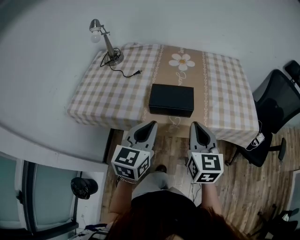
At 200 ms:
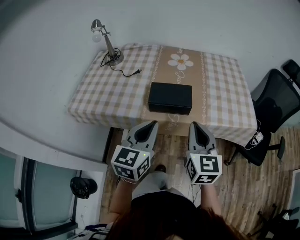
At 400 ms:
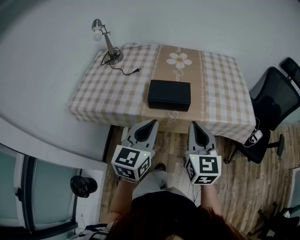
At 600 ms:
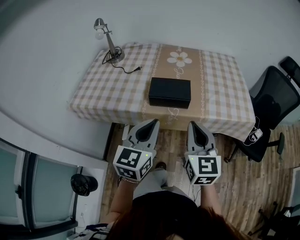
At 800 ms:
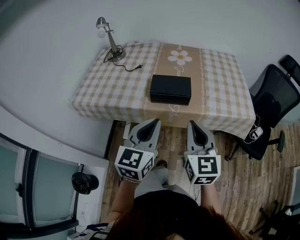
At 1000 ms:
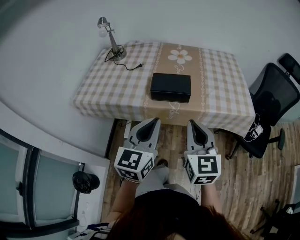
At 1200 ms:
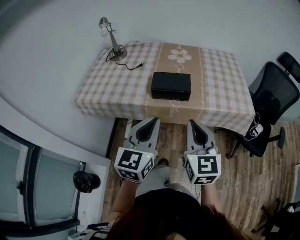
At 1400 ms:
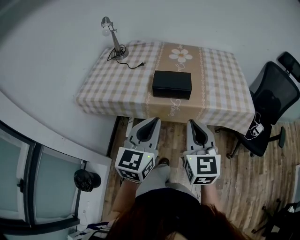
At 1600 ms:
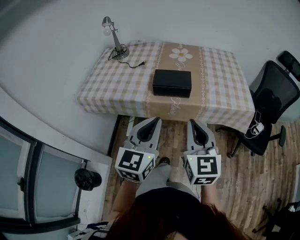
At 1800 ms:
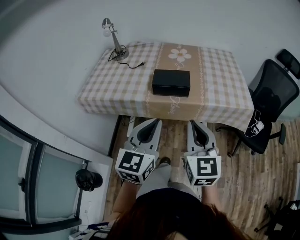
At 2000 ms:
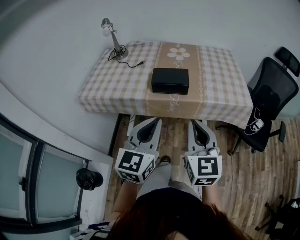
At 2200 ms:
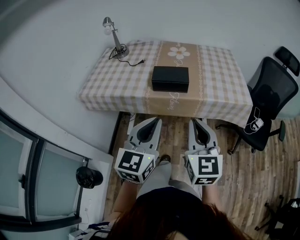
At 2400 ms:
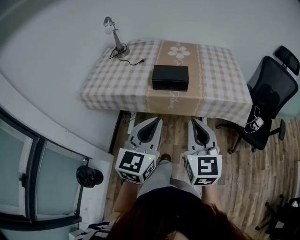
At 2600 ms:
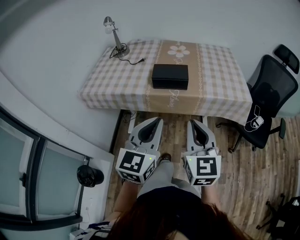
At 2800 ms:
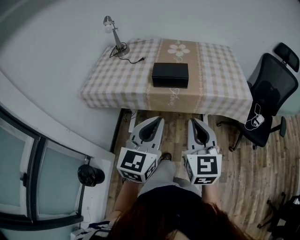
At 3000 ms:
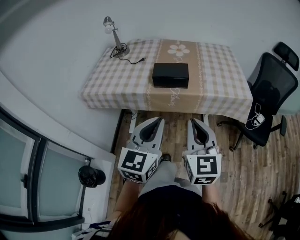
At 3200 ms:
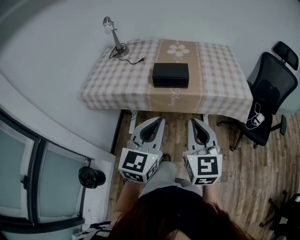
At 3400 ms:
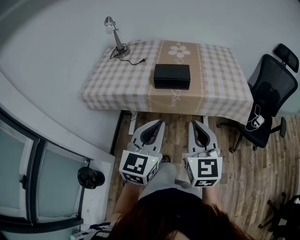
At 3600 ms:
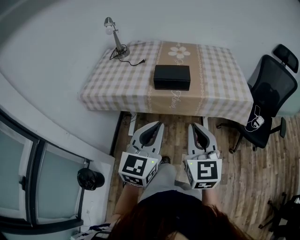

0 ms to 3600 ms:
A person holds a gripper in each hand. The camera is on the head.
0 ms to 1800 ms: The two grippers go approximately 15 cm backward.
1800 ms to 3600 ms: Both grippers move backward, roughly 5 cm.

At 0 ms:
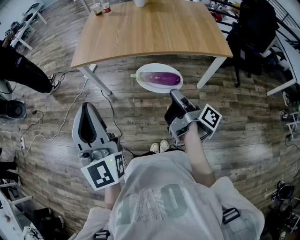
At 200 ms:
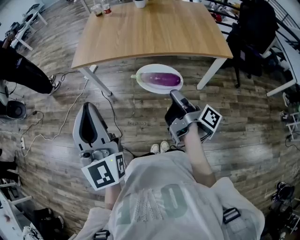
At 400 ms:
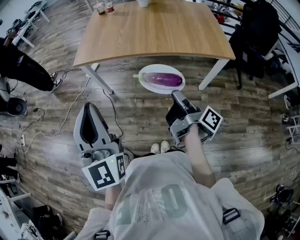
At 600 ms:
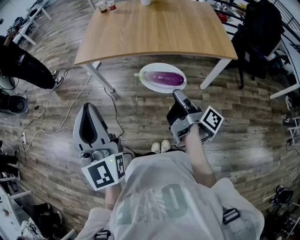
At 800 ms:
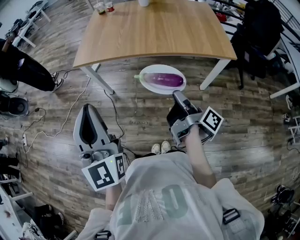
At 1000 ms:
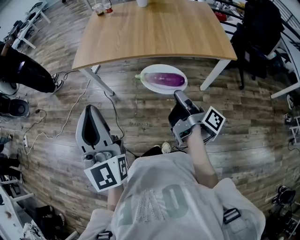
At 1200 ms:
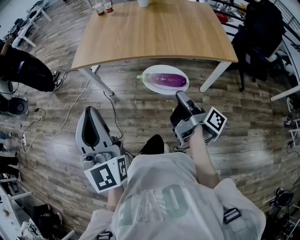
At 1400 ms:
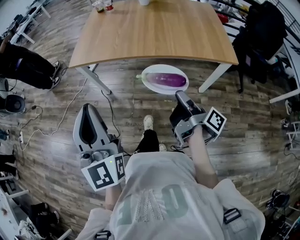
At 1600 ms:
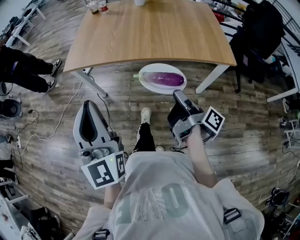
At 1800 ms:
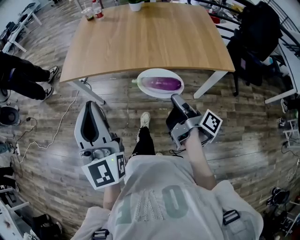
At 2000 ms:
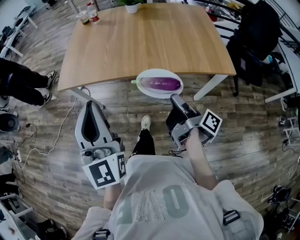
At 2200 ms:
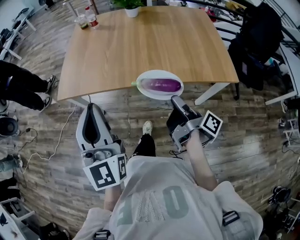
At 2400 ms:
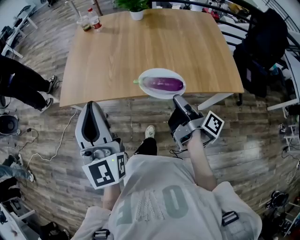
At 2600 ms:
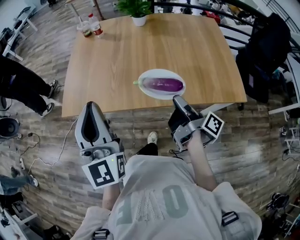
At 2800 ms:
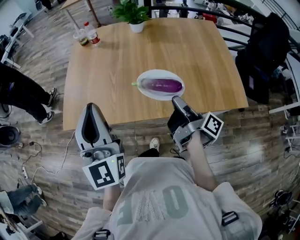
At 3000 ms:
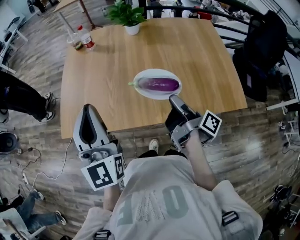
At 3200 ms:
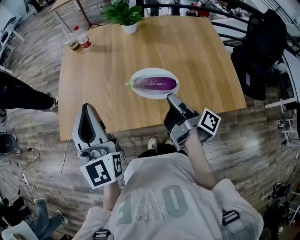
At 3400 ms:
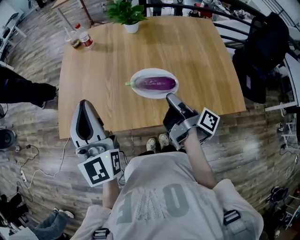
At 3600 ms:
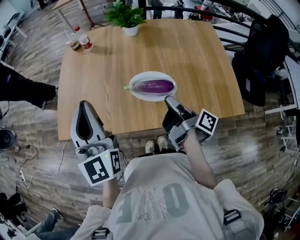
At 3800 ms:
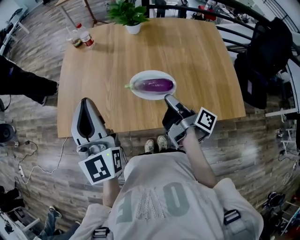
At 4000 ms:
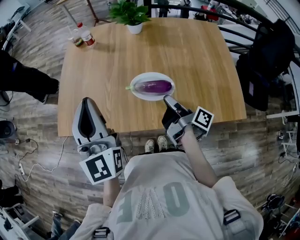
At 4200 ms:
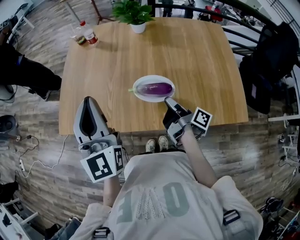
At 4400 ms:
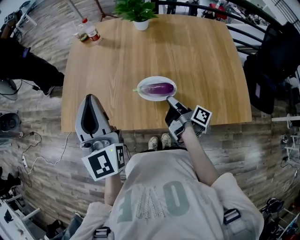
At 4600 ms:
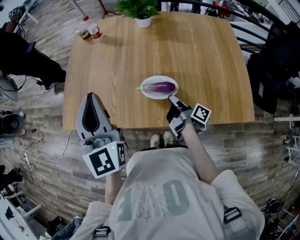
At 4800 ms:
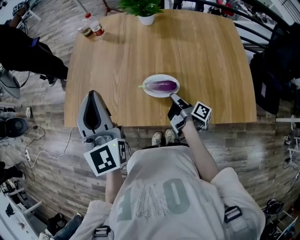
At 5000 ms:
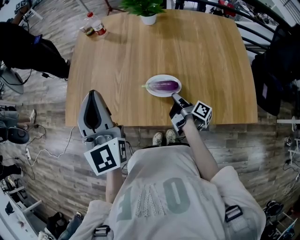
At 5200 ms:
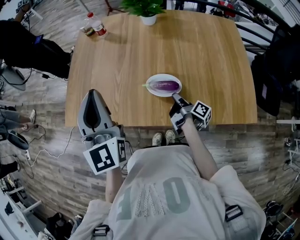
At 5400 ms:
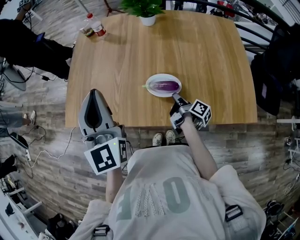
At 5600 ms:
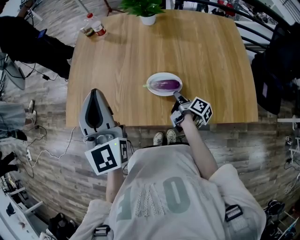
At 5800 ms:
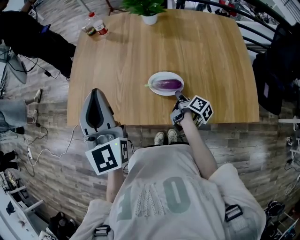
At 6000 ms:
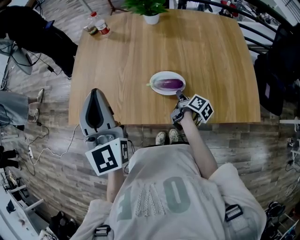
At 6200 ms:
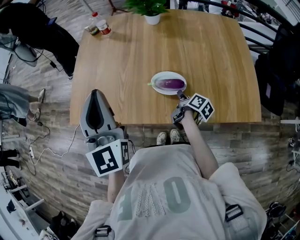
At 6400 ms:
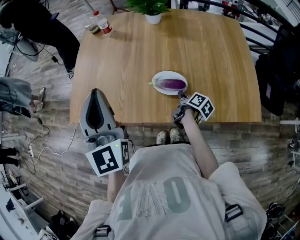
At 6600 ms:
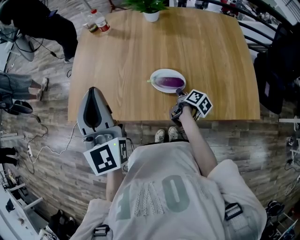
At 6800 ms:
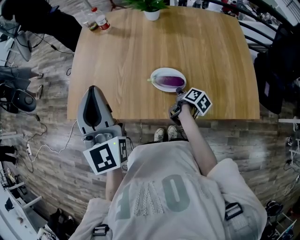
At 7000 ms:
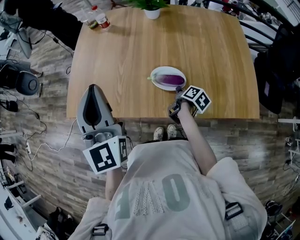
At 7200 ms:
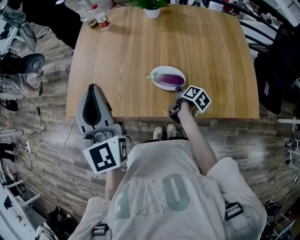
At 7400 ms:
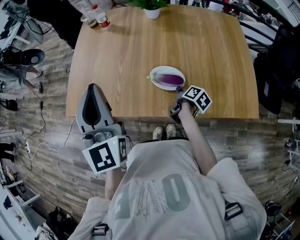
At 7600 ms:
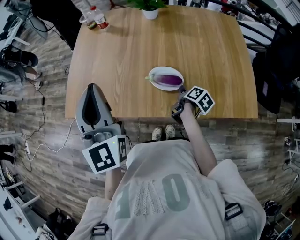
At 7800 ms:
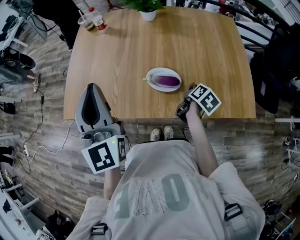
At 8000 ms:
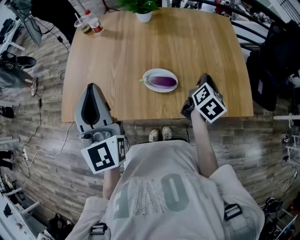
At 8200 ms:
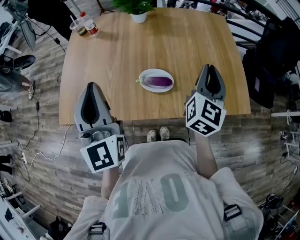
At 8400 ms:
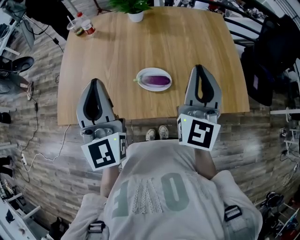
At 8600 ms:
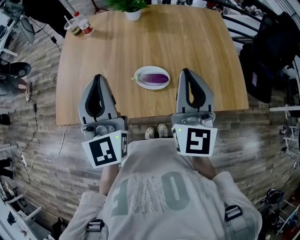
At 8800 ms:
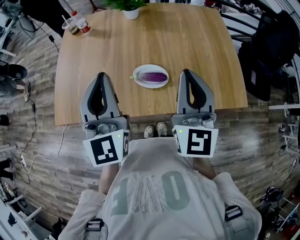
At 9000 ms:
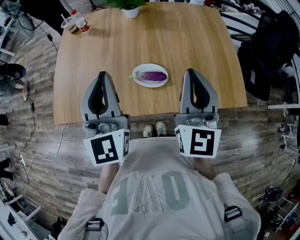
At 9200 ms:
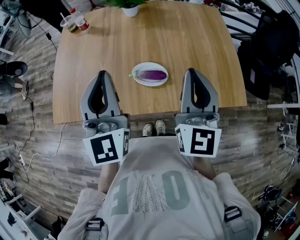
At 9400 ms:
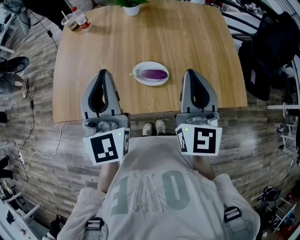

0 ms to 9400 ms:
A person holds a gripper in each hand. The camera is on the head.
0 ms to 1600 ms: The left gripper shifts by about 10 cm.
1600 ms to 3200 ms: The left gripper shifts by roughly 40 cm.
7800 ms to 9400 ms: The left gripper ends up about 10 cm from where it was.

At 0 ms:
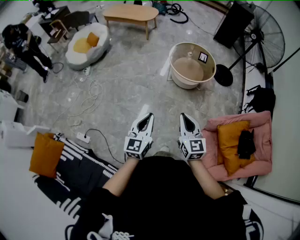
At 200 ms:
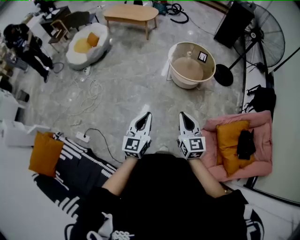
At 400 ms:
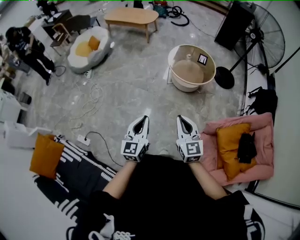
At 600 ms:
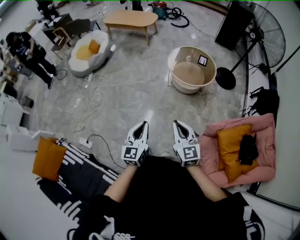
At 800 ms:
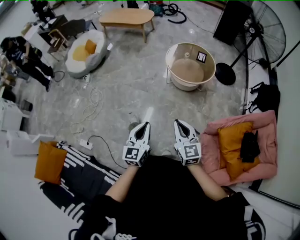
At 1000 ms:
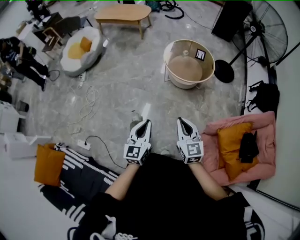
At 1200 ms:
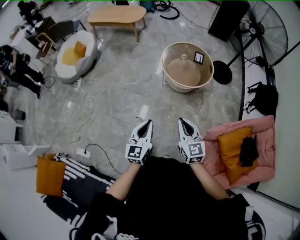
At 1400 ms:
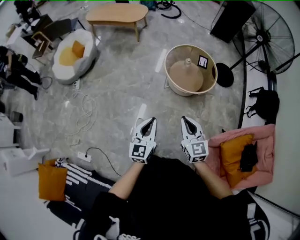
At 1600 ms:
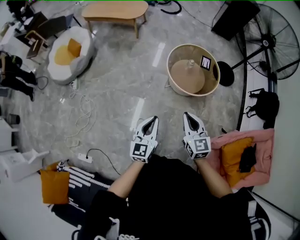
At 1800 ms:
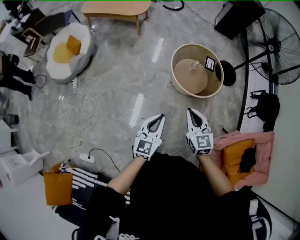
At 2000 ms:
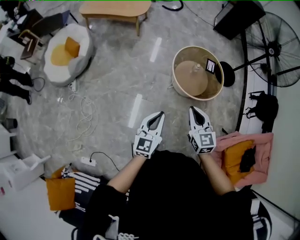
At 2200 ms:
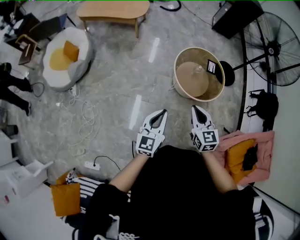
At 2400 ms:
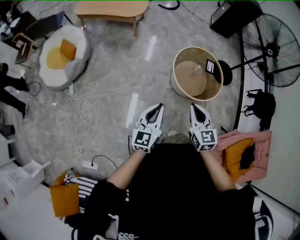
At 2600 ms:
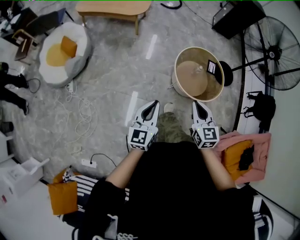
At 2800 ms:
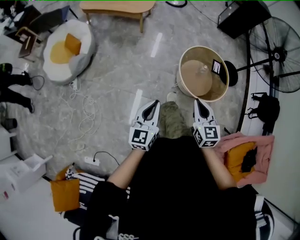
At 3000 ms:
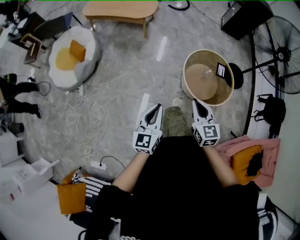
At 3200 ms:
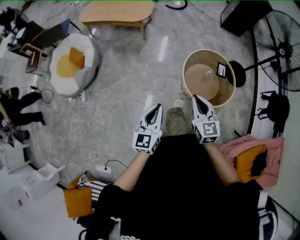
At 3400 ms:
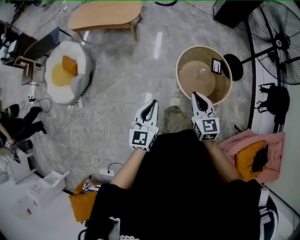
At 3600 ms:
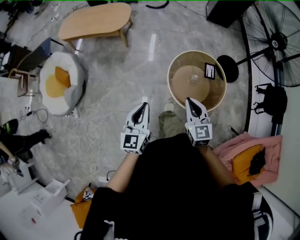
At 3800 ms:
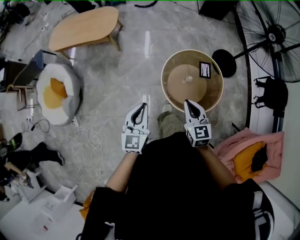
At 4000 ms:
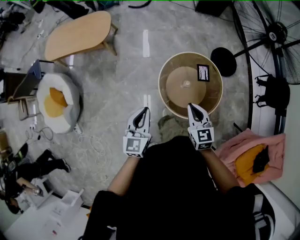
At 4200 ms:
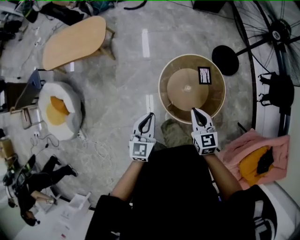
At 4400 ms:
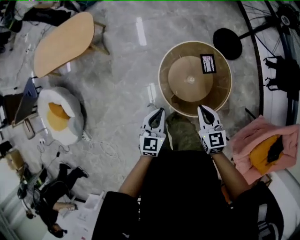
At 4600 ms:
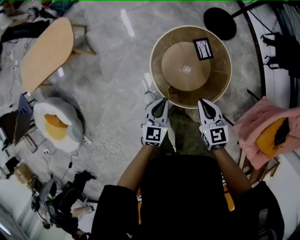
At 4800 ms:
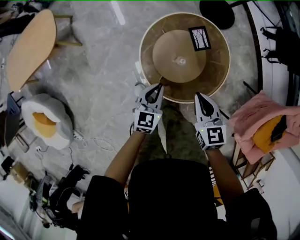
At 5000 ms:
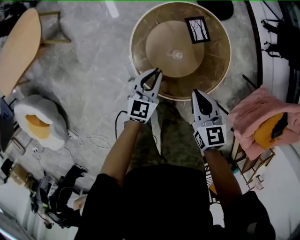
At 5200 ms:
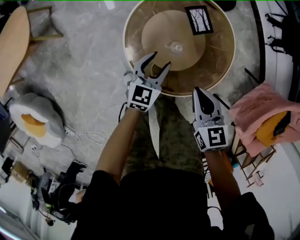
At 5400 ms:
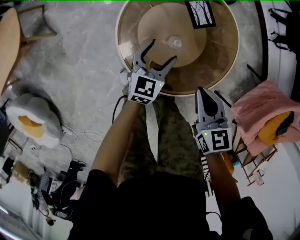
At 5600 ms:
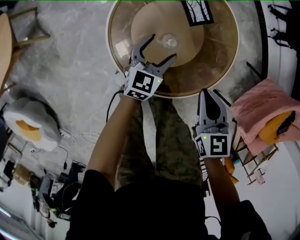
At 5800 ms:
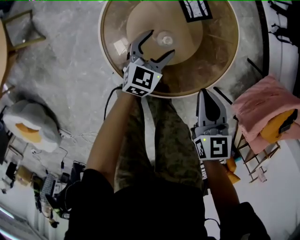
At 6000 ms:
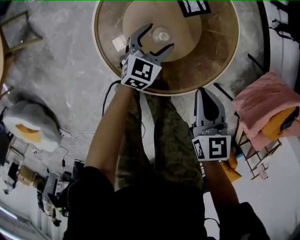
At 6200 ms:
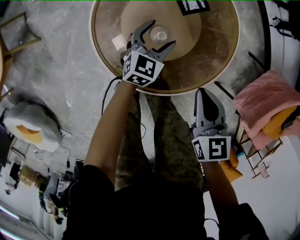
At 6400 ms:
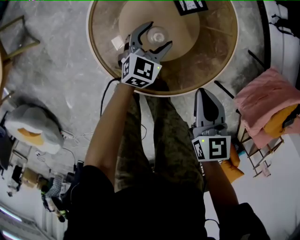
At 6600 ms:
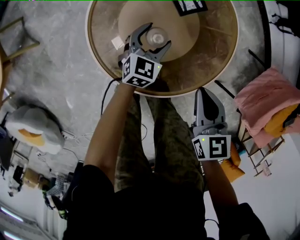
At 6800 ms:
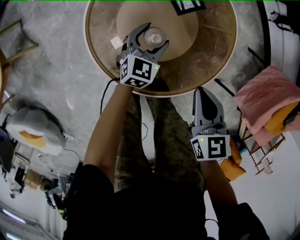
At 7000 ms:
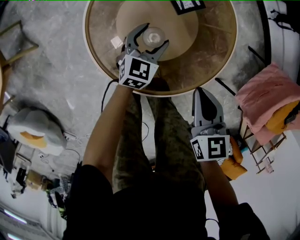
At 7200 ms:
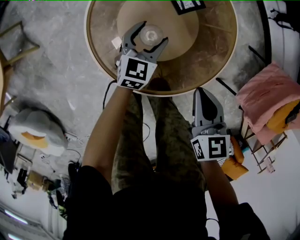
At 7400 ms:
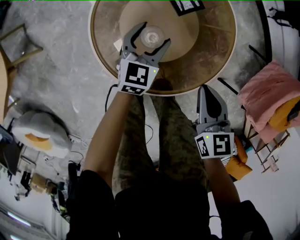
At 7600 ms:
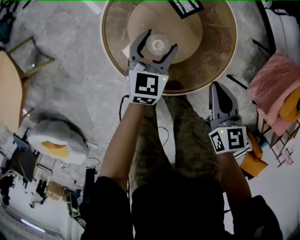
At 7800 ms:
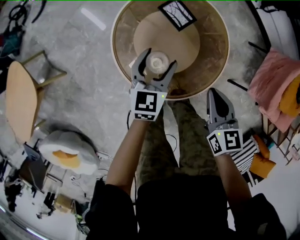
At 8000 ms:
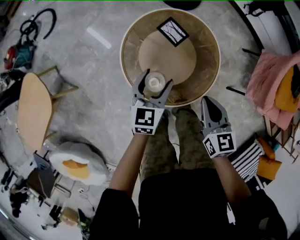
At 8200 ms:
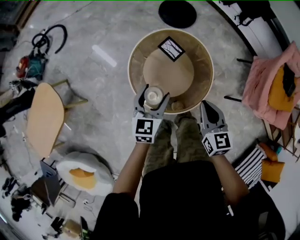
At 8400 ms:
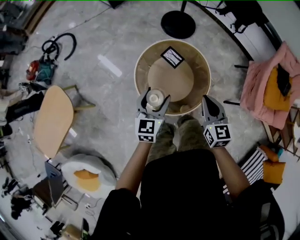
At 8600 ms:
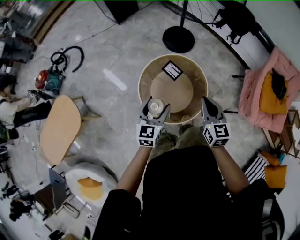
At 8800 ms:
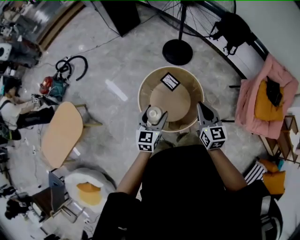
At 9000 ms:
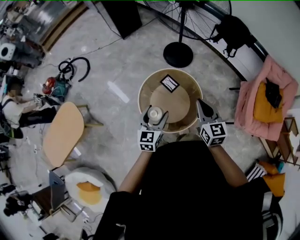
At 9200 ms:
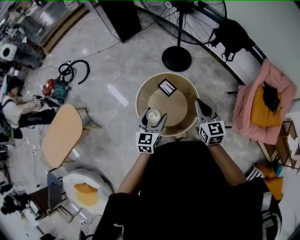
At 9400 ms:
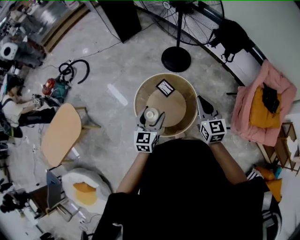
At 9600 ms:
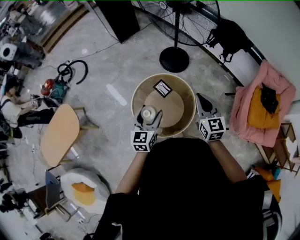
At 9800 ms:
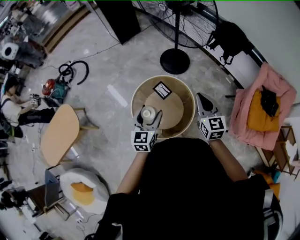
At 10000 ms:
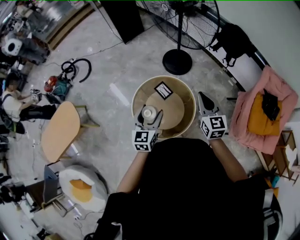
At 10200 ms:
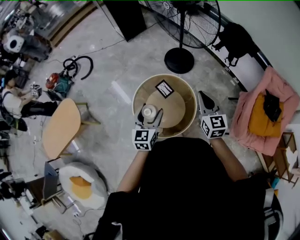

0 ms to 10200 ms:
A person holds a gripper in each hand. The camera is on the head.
0 ms to 1400 ms: Both grippers travel together forward, roughly 30 cm.
1400 ms to 3000 ms: The grippers both shift forward and to the left by approximately 40 cm.
3000 ms to 4400 ms: The pair of grippers is taken forward and to the right, about 50 cm. Both grippers travel together downward, some 20 cm. The left gripper rotates approximately 30 degrees, while the right gripper swivels roughly 20 degrees.
4400 ms to 5800 ms: The two grippers go roughly 35 cm downward. The left gripper rotates approximately 30 degrees, and opens. Meanwhile the right gripper turns by approximately 30 degrees.
5800 ms to 7200 ms: The grippers move only a little.
7200 ms to 8800 ms: The grippers both shift upward by approximately 50 cm. The right gripper changes its angle by about 30 degrees.
8800 ms to 10200 ms: The right gripper shifts about 15 cm to the right and forward. Meanwhile the left gripper travels to the right and upward by roughly 10 cm.

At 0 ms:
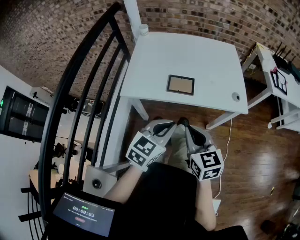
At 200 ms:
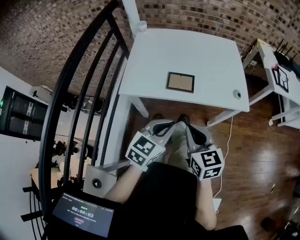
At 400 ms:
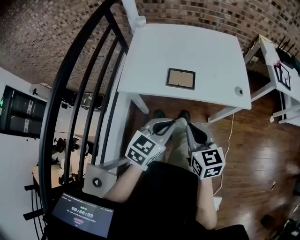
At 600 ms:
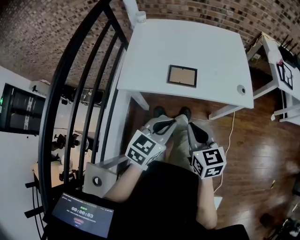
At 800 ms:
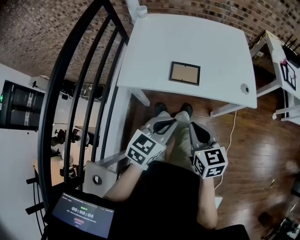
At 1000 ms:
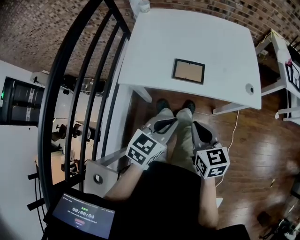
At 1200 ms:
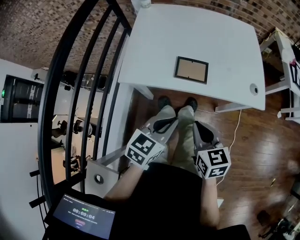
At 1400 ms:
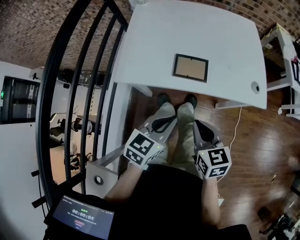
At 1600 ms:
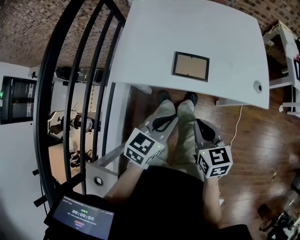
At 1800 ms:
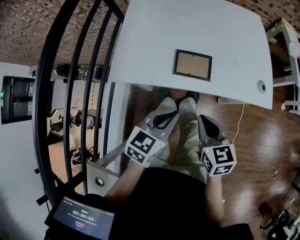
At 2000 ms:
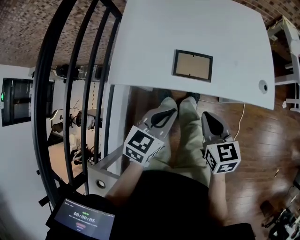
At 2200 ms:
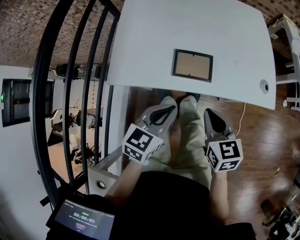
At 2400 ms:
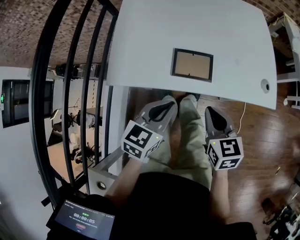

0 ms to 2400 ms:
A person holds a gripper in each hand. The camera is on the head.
0 ms to 1200 ms: The two grippers go about 5 cm downward.
1200 ms to 2400 ms: Both grippers travel together forward, some 10 cm.